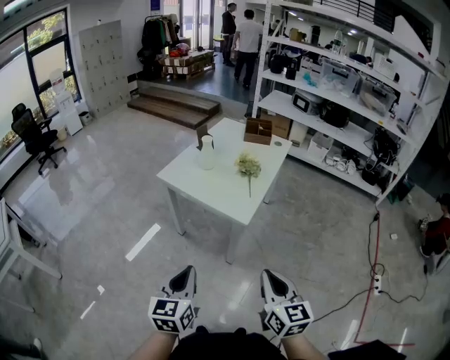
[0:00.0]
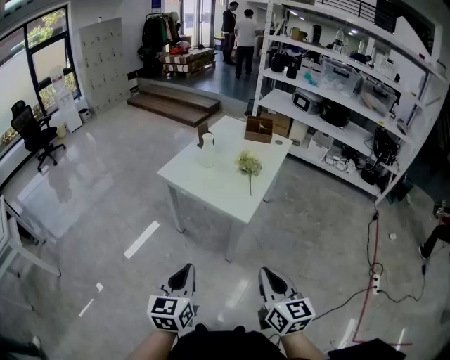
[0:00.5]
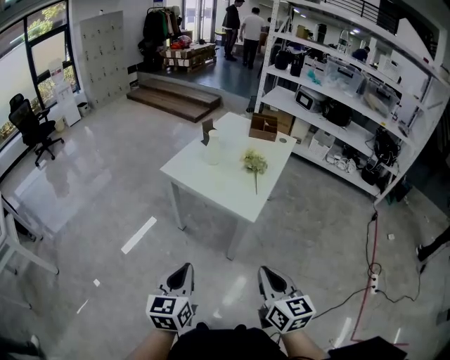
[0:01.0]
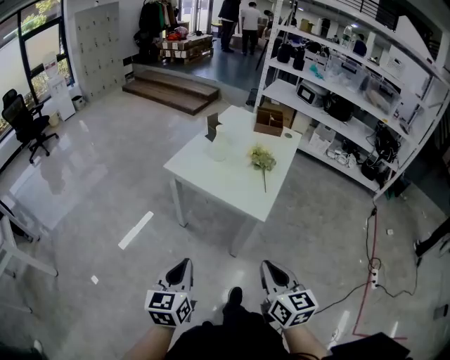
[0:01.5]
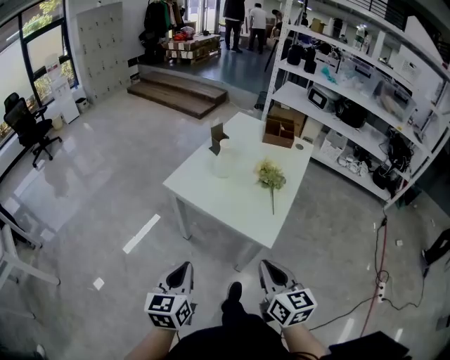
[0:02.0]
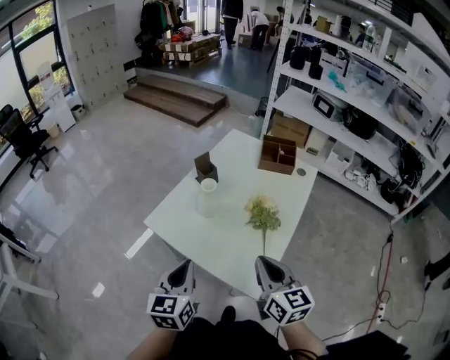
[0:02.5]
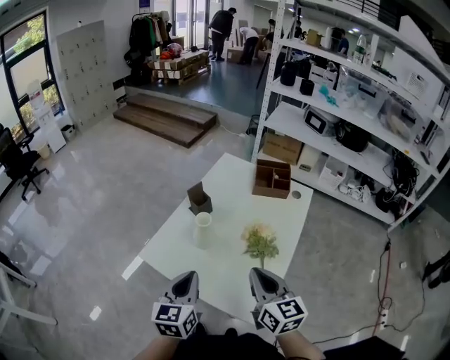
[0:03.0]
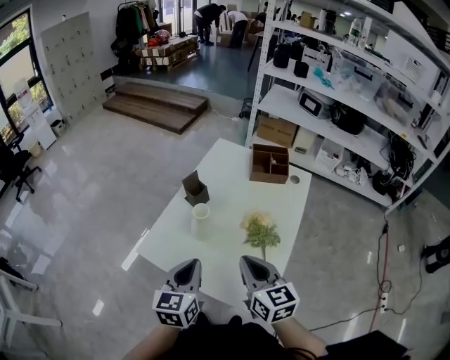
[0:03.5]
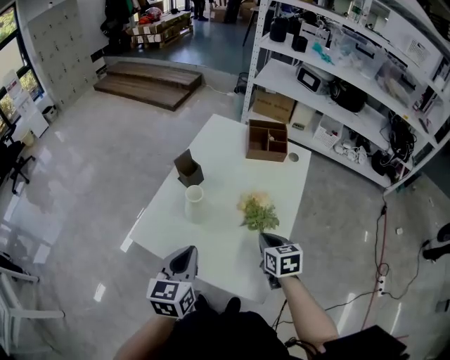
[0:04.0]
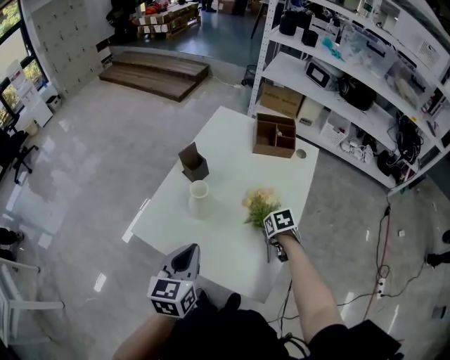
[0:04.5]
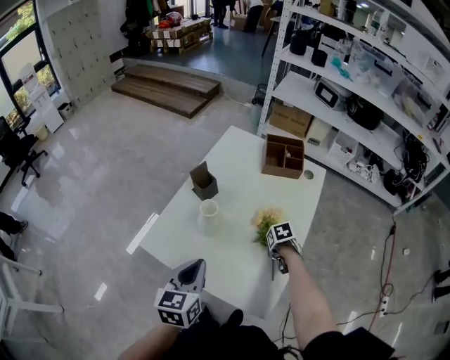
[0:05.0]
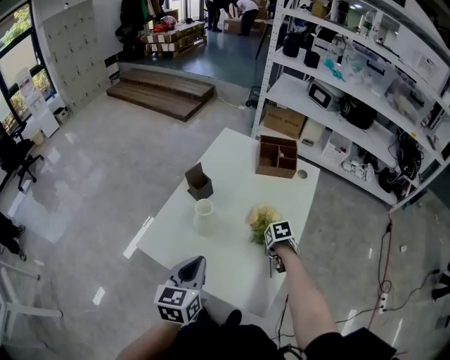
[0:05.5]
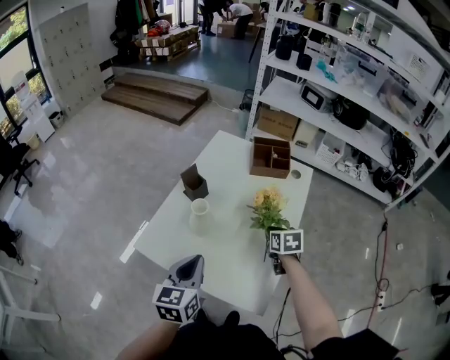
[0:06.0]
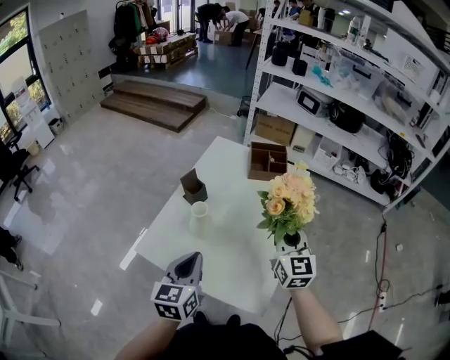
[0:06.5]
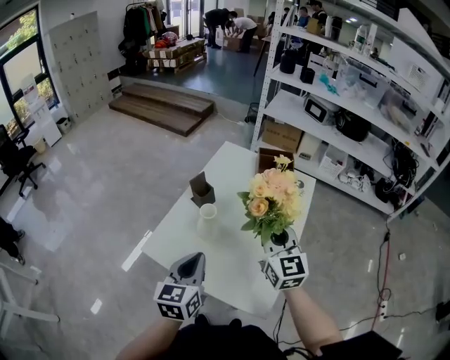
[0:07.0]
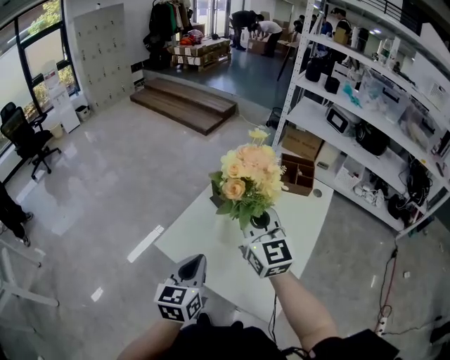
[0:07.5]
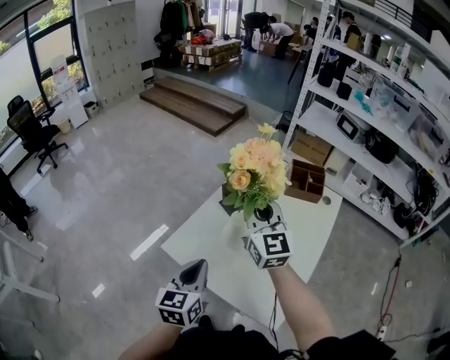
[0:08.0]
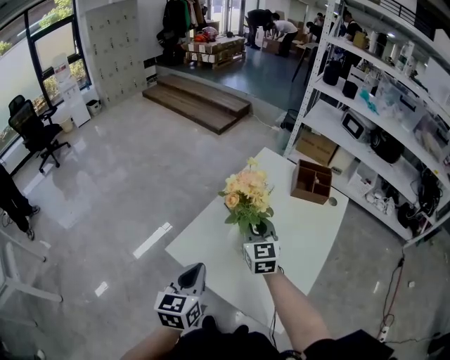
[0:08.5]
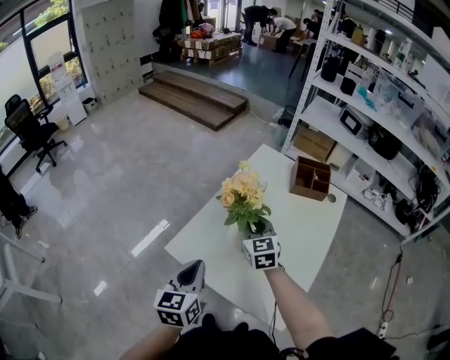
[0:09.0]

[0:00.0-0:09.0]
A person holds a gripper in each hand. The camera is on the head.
0:00.0 to 0:02.0: The grippers both shift forward and to the left by roughly 20 cm.
0:02.0 to 0:04.5: The right gripper travels forward and downward by about 50 cm, tips its fingers downward by approximately 60 degrees, and opens up. Meanwhile the left gripper shifts some 35 cm forward.
0:04.5 to 0:07.0: The right gripper travels upward by about 30 cm, and tilts its fingers roughly 70 degrees upward.
0:07.0 to 0:09.0: The right gripper shifts approximately 20 cm to the left, downward and forward, and swivels roughly 20 degrees. The left gripper goes some 10 cm to the left.

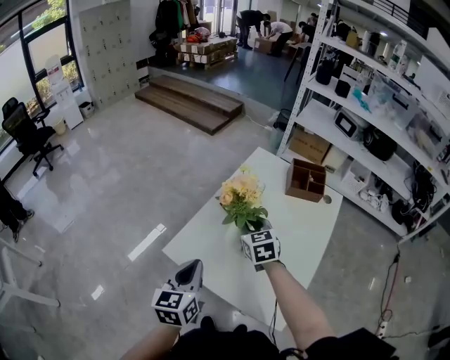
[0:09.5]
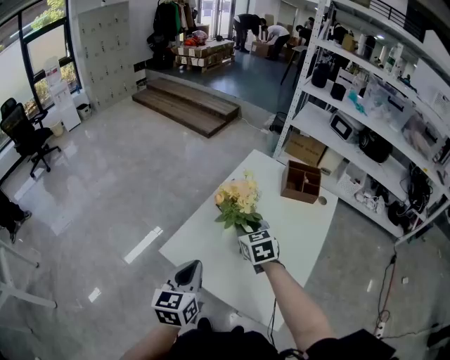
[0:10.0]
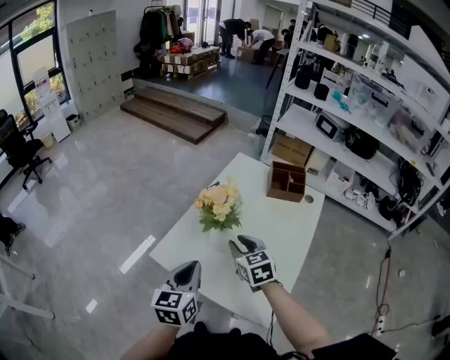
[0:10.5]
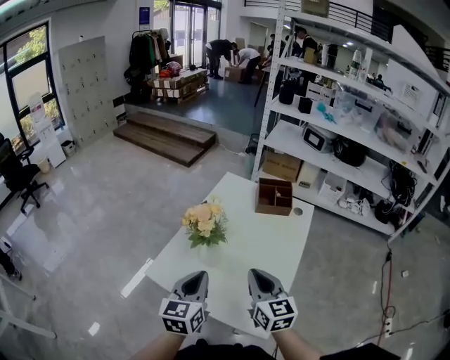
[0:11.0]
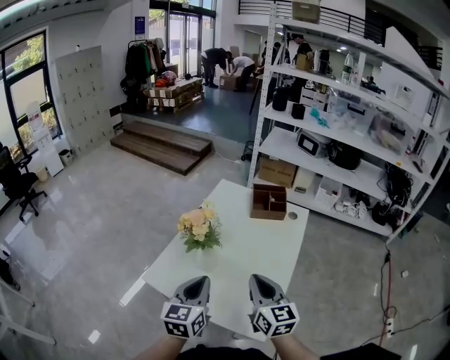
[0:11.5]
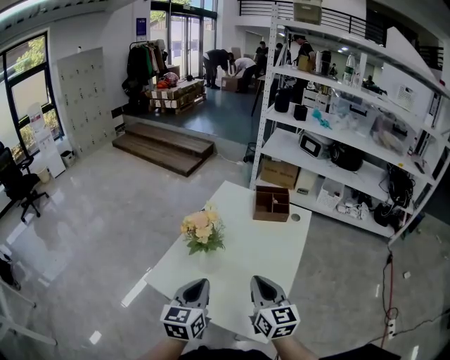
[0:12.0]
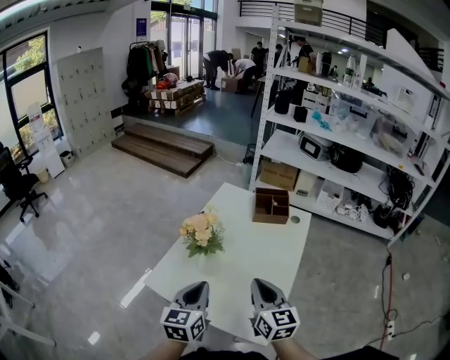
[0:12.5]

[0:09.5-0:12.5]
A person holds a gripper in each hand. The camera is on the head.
0:09.5 to 0:11.0: The left gripper moves to the right, approximately 10 cm, while the right gripper travels backward, to the right and upward by some 20 cm, and rotates about 20 degrees.
0:11.0 to 0:12.5: The grippers move only a little.

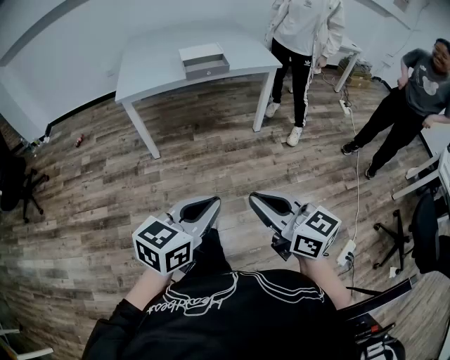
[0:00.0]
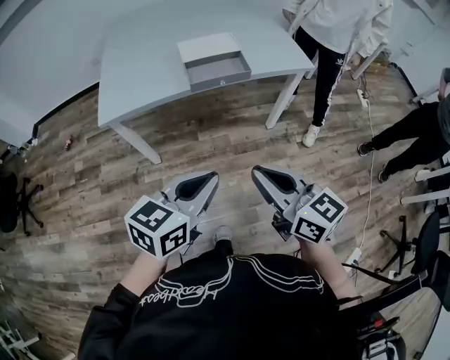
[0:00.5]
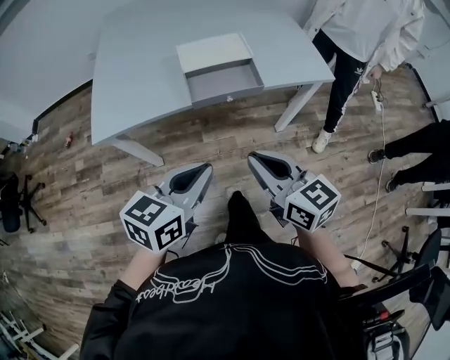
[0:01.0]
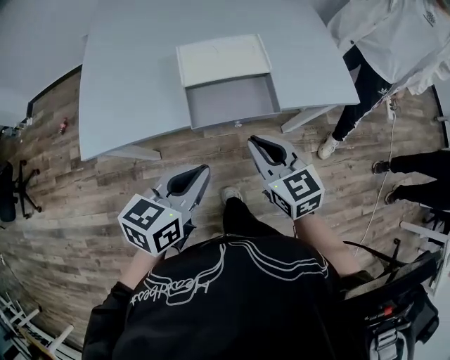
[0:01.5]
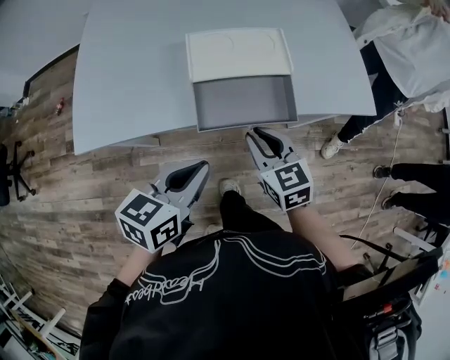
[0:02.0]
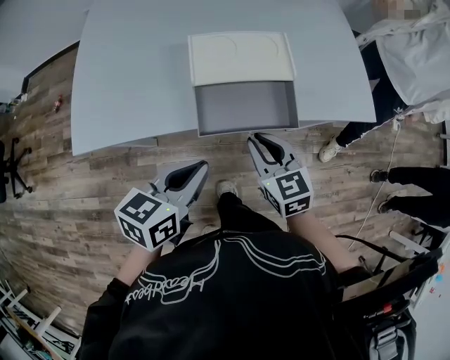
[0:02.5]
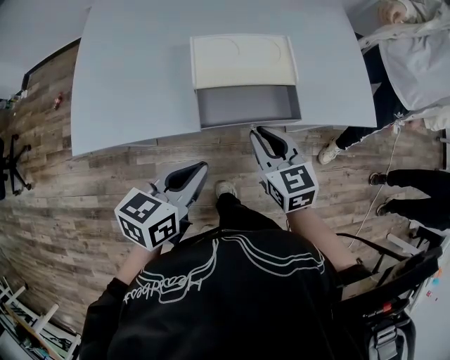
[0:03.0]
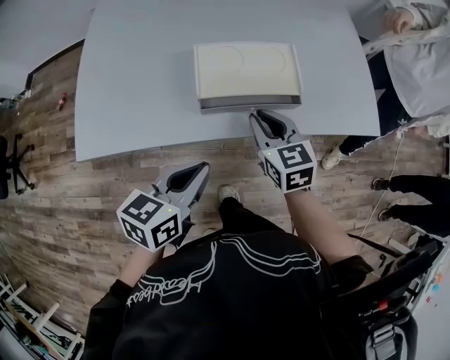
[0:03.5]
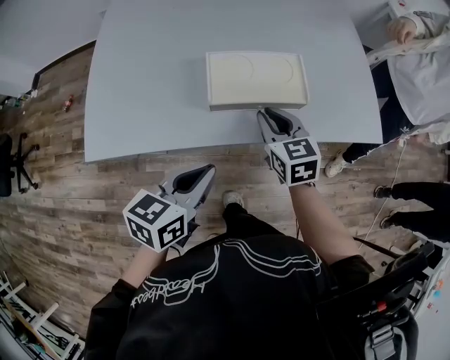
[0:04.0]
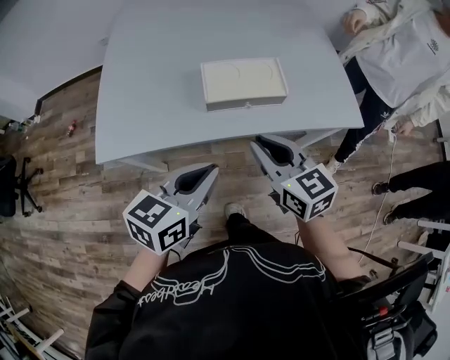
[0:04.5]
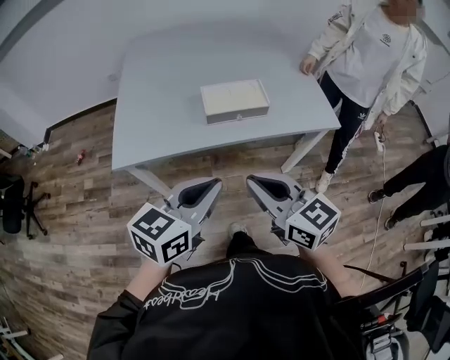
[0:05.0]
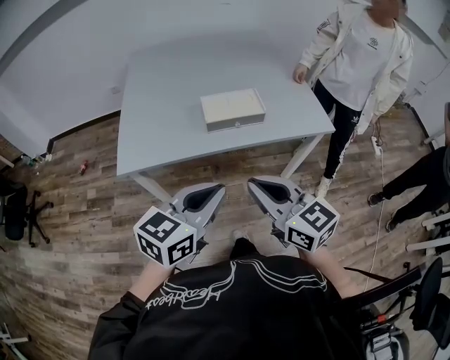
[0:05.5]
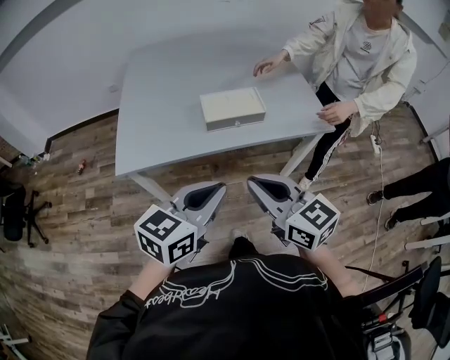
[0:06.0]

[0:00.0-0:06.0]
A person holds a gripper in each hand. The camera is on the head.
0:00.0 to 0:02.0: The two grippers travel together, forward, about 70 cm. The left gripper changes its angle by approximately 20 degrees; the right gripper turns by approximately 30 degrees.
0:02.0 to 0:04.0: The right gripper travels forward by roughly 10 cm.
0:04.0 to 0:06.0: The left gripper is displaced upward and backward by roughly 25 cm, and turns by roughly 20 degrees, while the right gripper goes some 35 cm backward and upward, and swivels some 30 degrees.

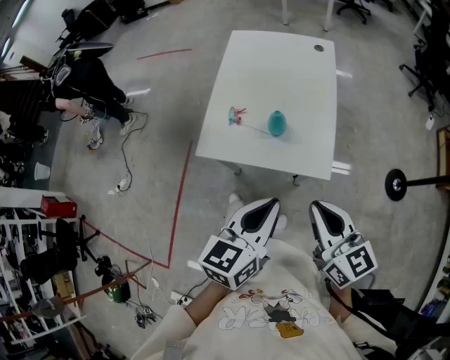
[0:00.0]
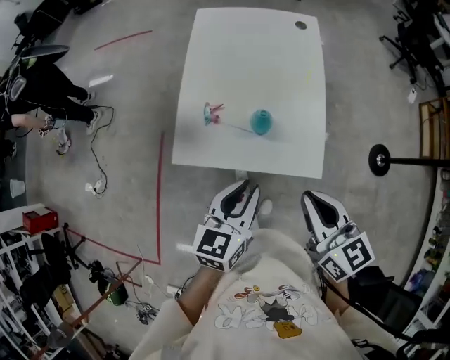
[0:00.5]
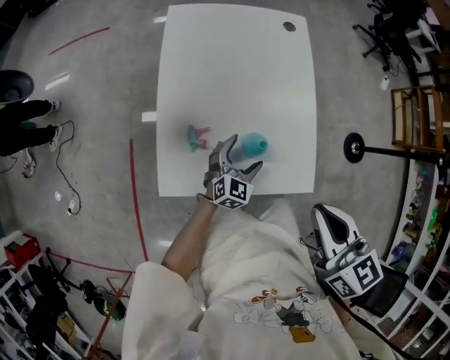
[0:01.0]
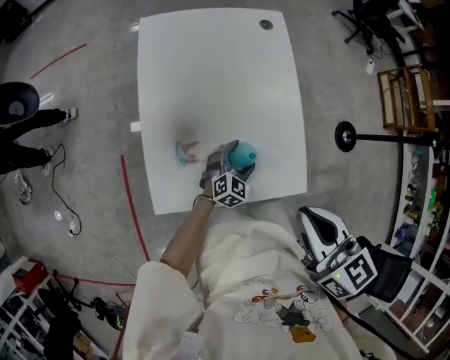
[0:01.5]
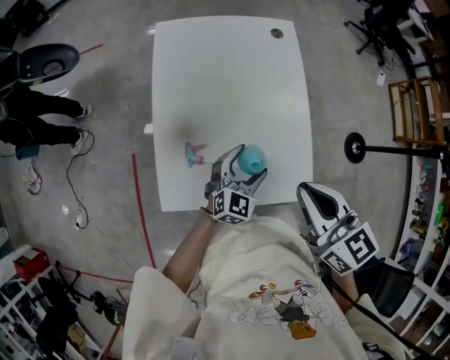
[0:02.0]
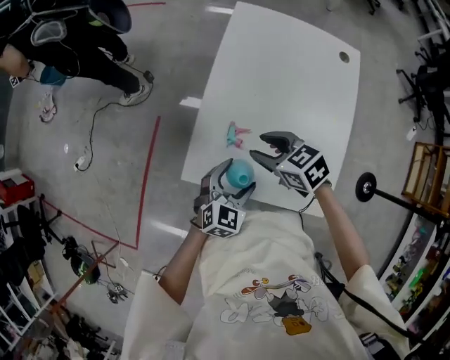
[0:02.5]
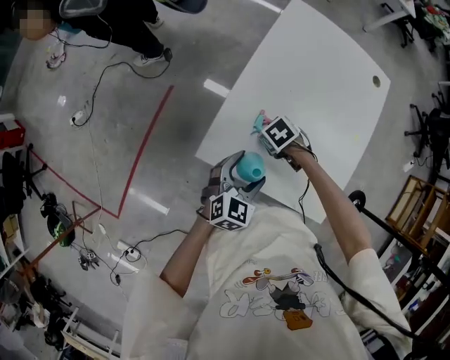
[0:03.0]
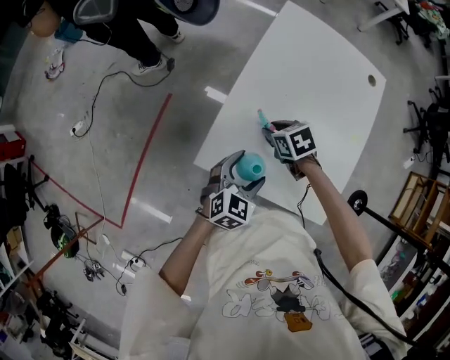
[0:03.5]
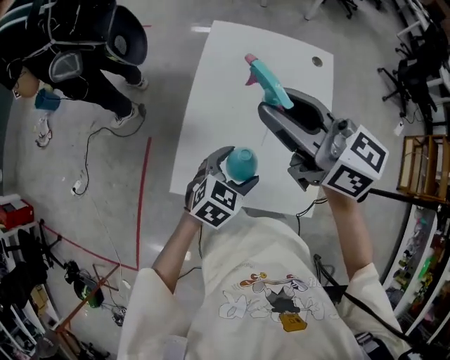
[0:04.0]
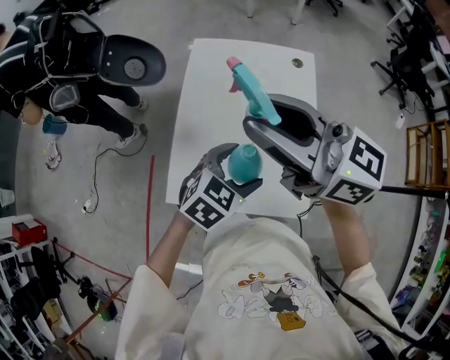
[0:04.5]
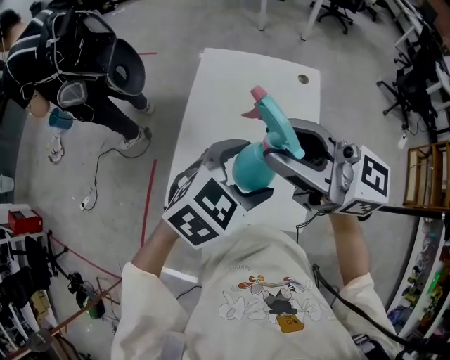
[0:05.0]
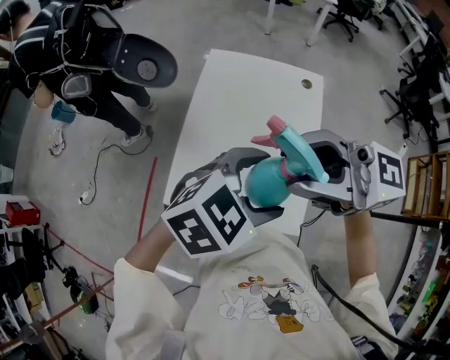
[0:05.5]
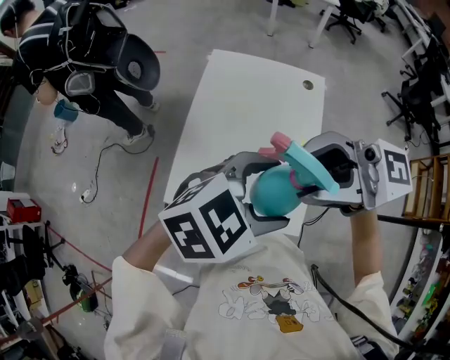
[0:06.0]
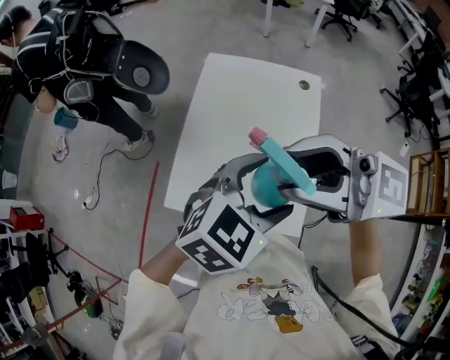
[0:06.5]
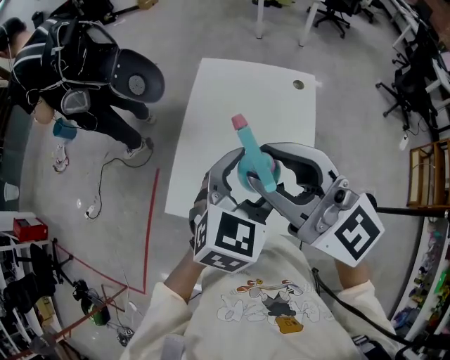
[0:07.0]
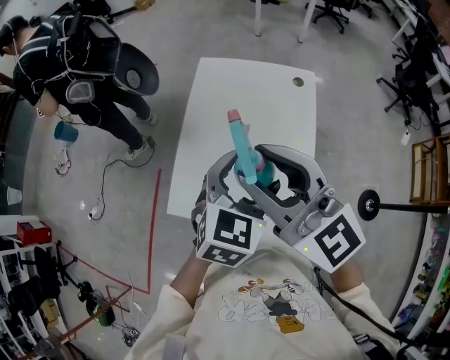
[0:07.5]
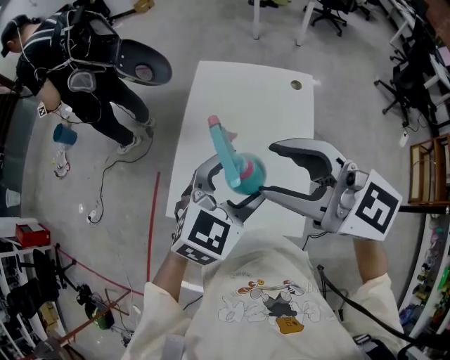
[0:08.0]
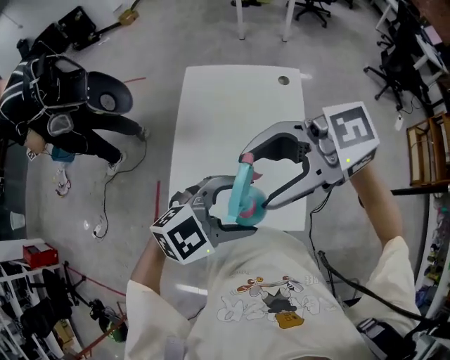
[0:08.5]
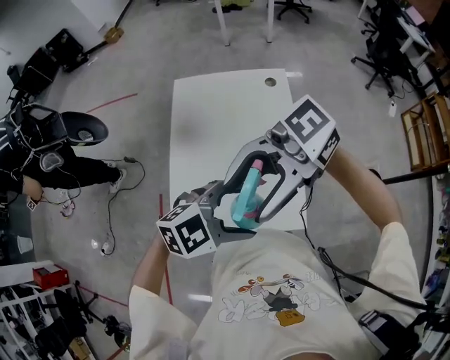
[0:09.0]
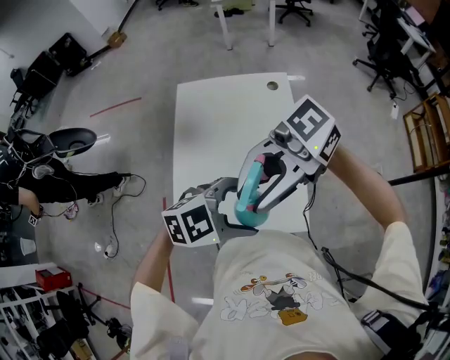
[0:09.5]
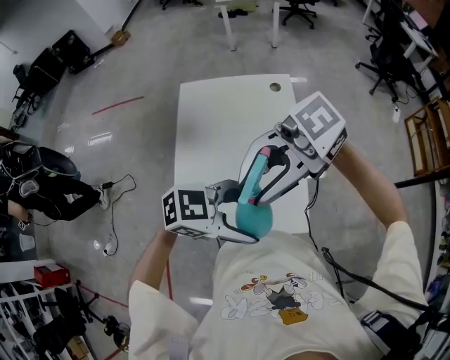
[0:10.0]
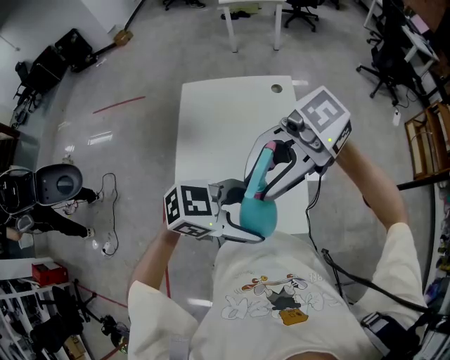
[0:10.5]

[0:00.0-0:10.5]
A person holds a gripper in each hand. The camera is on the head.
0:00.0 to 0:02.0: The right gripper is displaced forward by approximately 30 cm, while the left gripper travels forward and downward by approximately 40 cm, changes its angle by approximately 40 degrees, and opens up.
0:02.0 to 0:04.0: The left gripper turns by roughly 20 degrees, while the right gripper goes downward and returns, some 30 cm each way, rotates about 40 degrees, and opens up.
0:04.0 to 0:06.5: The left gripper shifts some 20 cm upward. The right gripper changes place by about 20 cm, and swivels about 30 degrees.
0:06.5 to 0:08.5: The right gripper moves roughly 5 cm, rotates approximately 30 degrees, and opens, while the left gripper moves some 5 cm, and changes its angle by approximately 30 degrees.
0:08.5 to 0:10.5: The right gripper closes. Meanwhile the left gripper rotates roughly 30 degrees.
